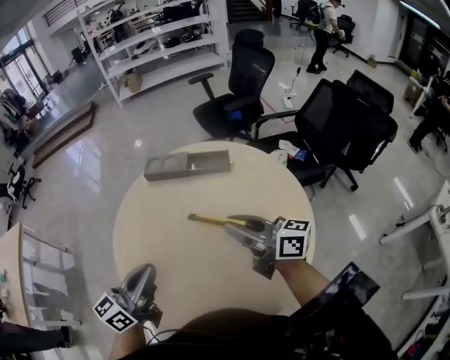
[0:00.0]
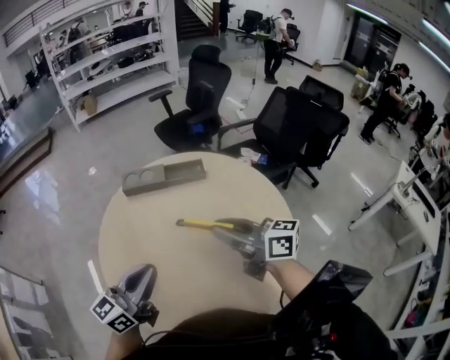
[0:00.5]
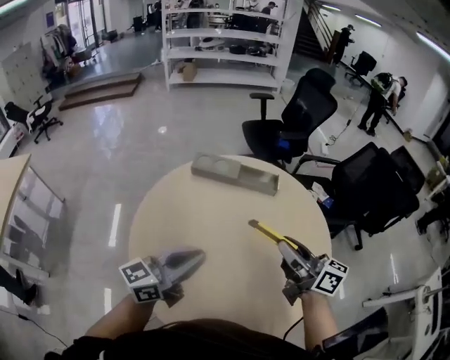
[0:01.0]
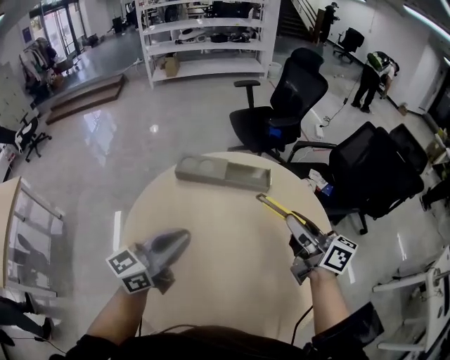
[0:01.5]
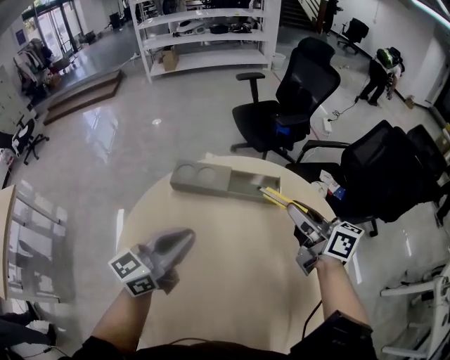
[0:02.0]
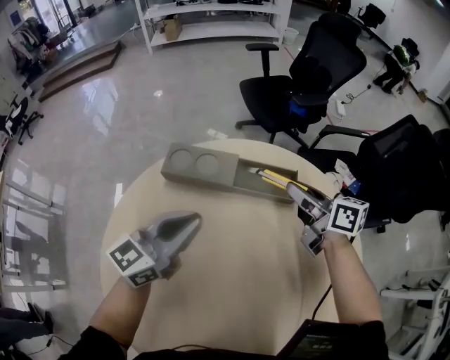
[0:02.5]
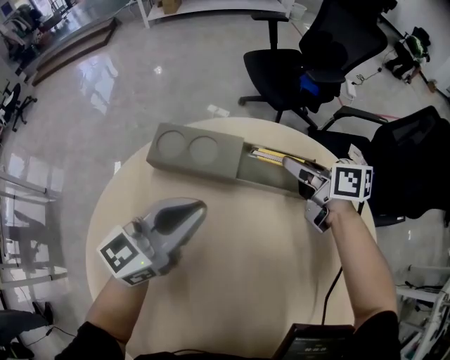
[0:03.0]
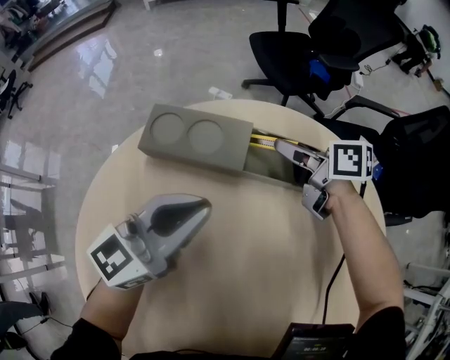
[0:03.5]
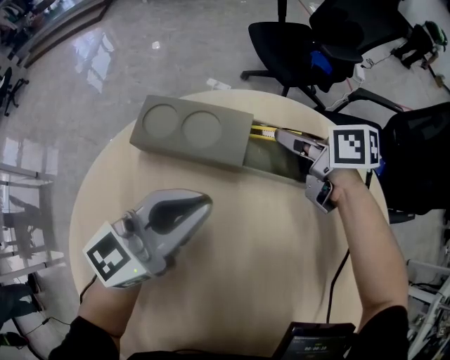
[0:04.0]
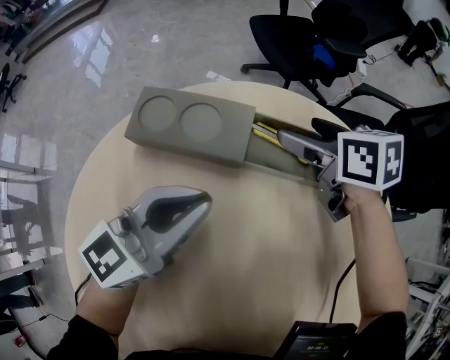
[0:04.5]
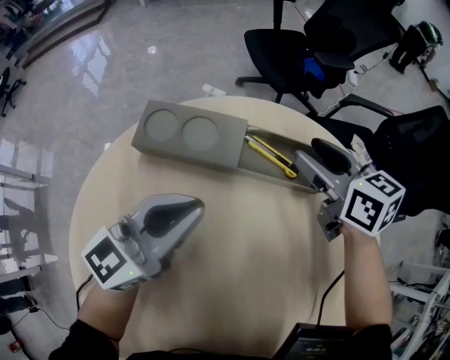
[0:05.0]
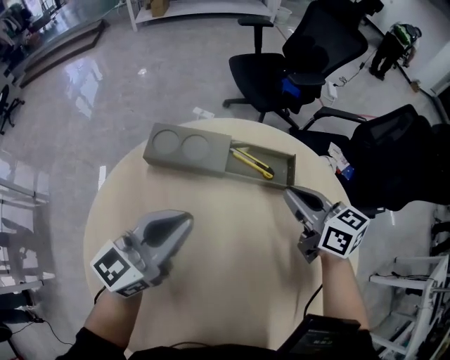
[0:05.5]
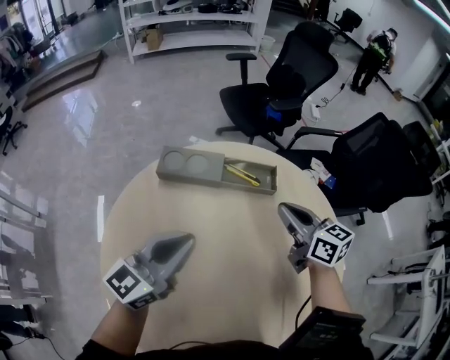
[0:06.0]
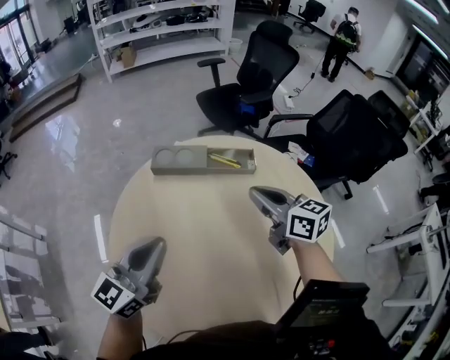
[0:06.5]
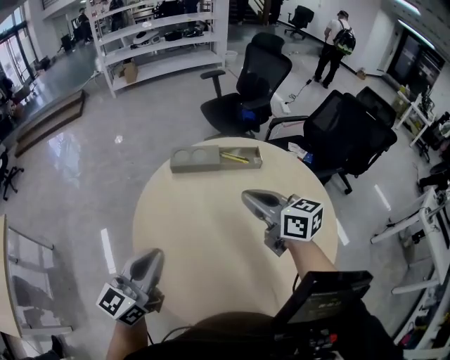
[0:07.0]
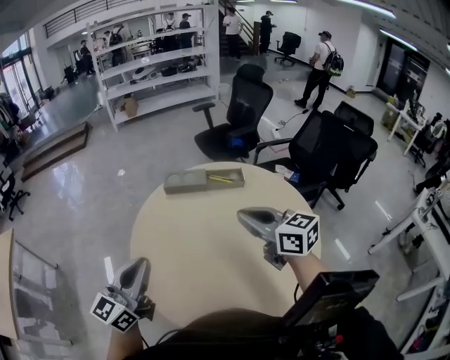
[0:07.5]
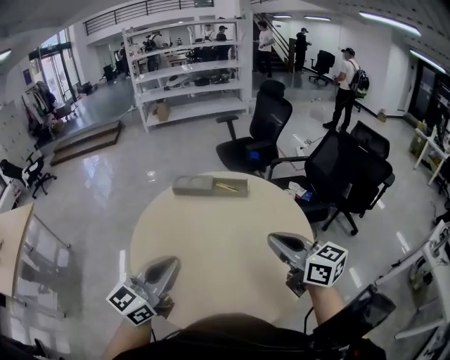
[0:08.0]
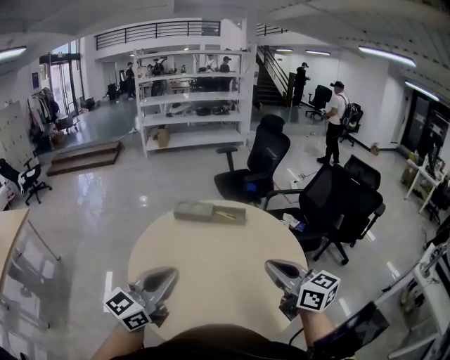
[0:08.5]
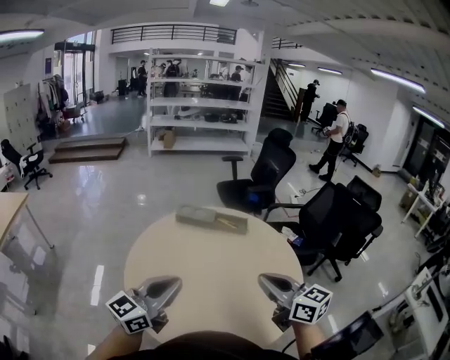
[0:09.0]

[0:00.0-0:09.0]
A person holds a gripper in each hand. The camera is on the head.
0:00.0 to 0:02.0: Both grippers move forward, approximately 25 cm.
0:02.0 to 0:04.5: Both grippers travel together downward and forward, about 30 cm. The right gripper tips its fingers downward by about 40 degrees, and opens up.
0:04.5 to 0:07.0: The two grippers travel together, backward, approximately 40 cm. The grippers both shift upward by some 30 cm. The right gripper changes its angle by about 30 degrees, and closes up.
0:07.0 to 0:09.0: The two grippers go approximately 25 cm backward and to the right.

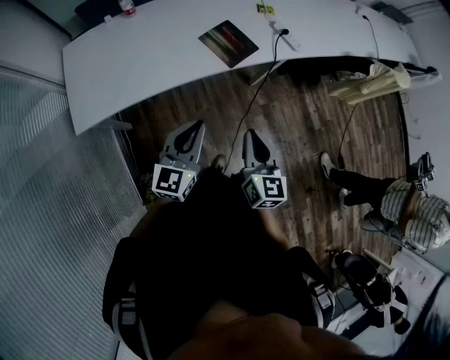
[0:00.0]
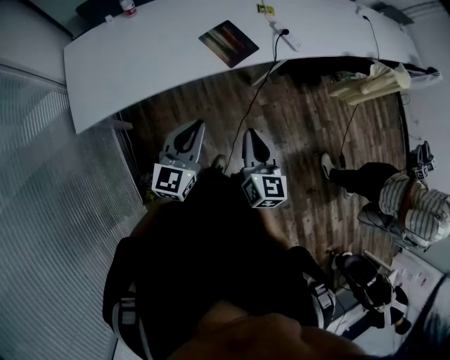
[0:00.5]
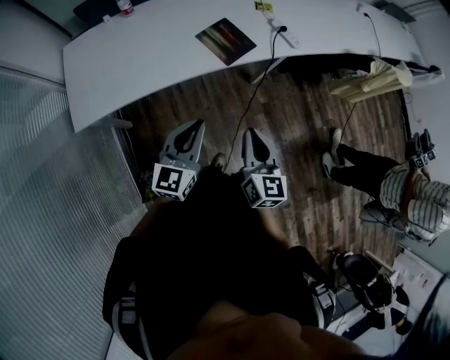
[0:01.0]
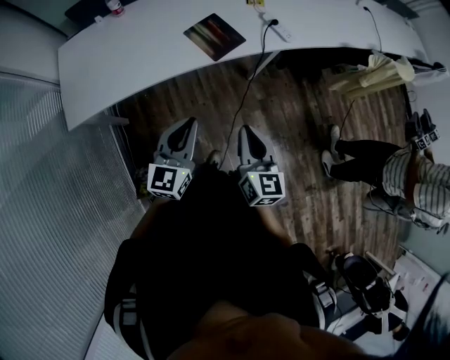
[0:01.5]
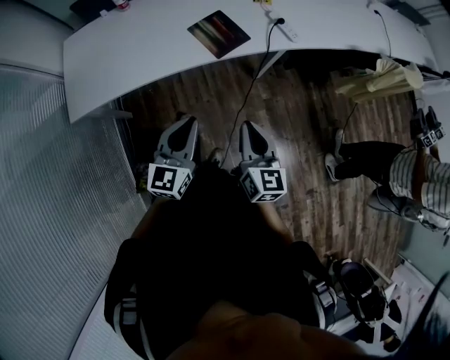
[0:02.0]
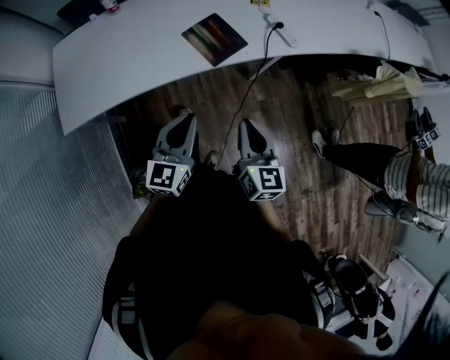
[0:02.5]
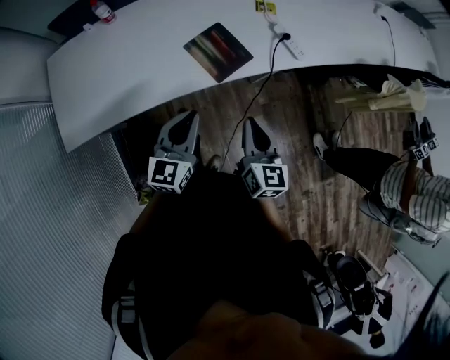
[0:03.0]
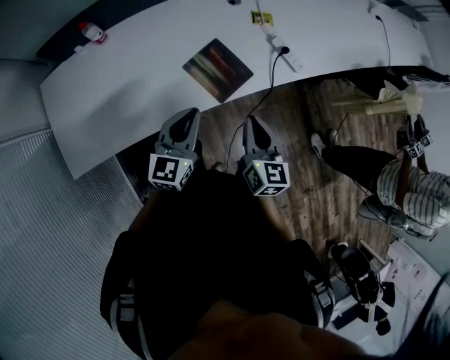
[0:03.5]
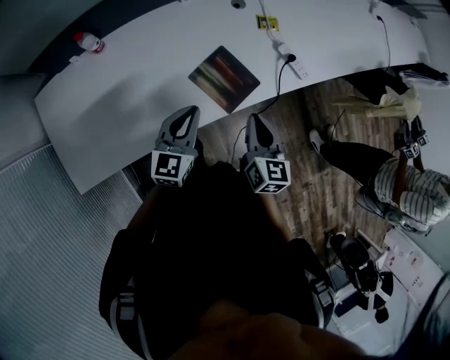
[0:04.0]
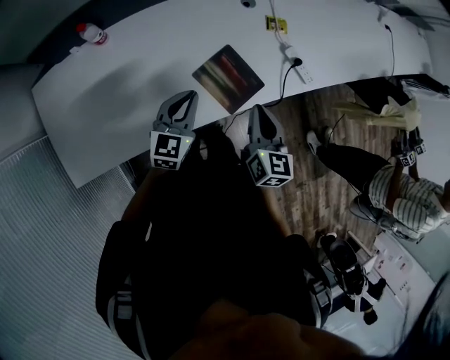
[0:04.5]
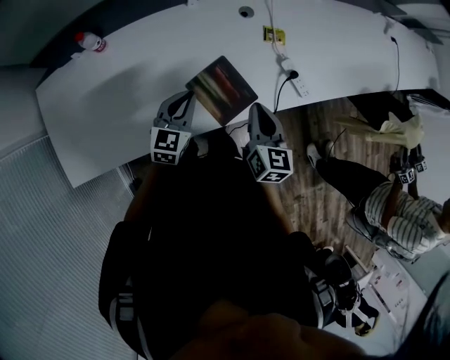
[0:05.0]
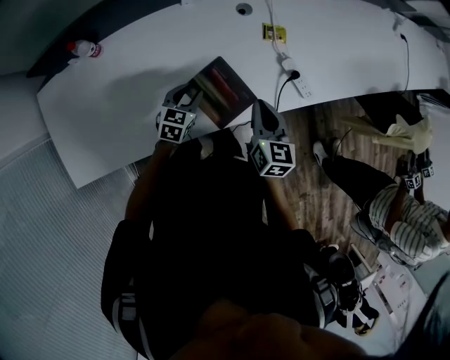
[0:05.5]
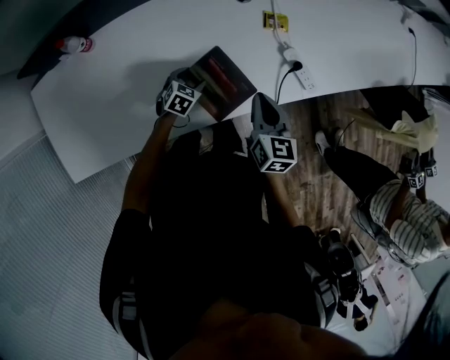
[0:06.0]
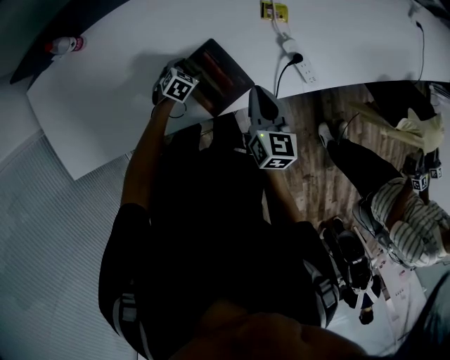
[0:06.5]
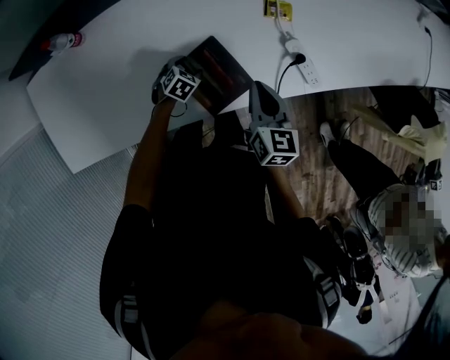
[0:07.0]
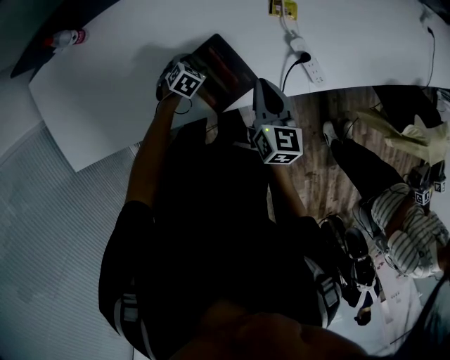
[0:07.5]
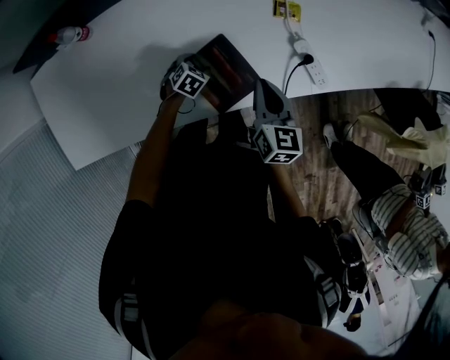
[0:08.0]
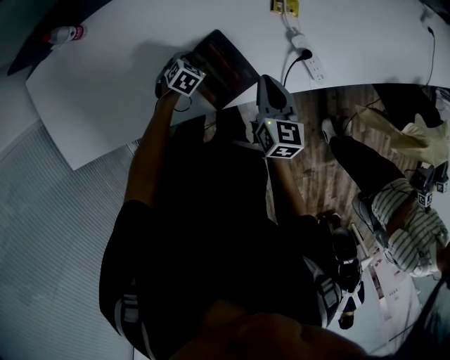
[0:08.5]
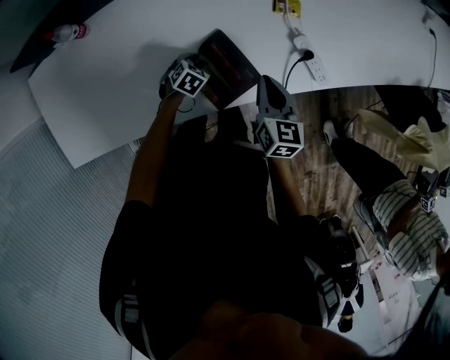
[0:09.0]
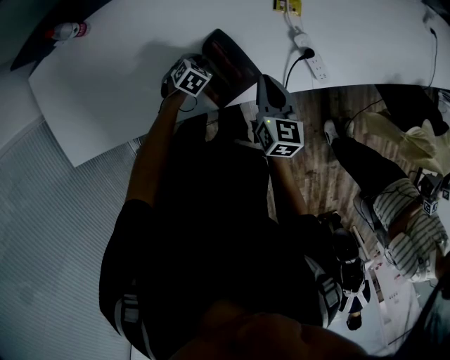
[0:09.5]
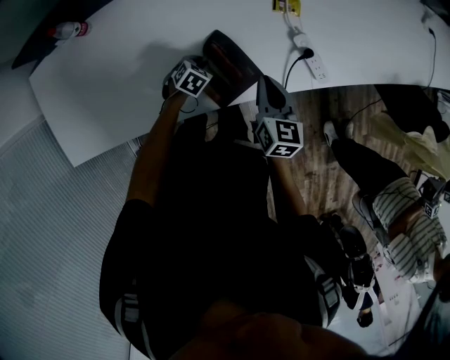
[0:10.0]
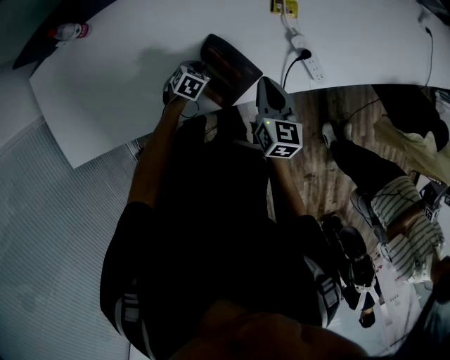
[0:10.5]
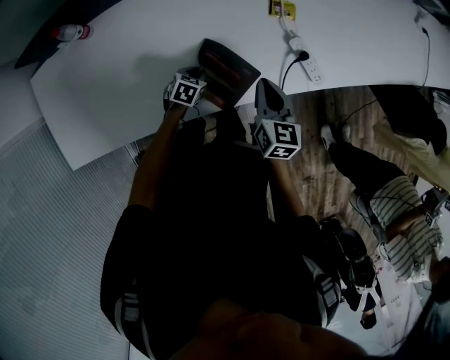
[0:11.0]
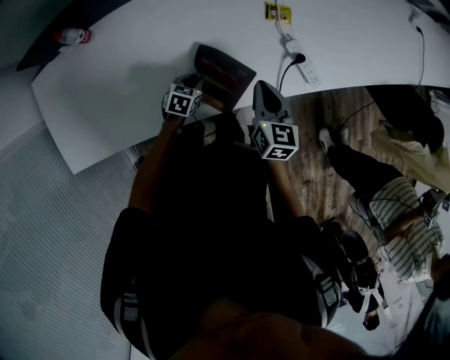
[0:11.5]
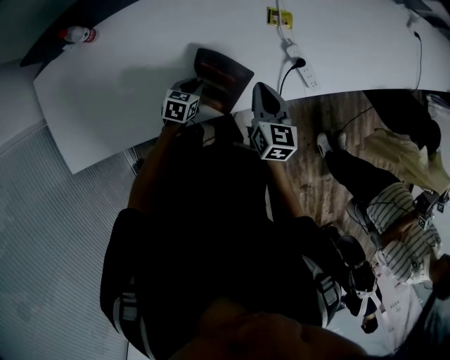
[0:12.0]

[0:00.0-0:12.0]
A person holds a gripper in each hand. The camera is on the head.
0:00.0 to 0:02.0: The two grippers go roughly 10 cm to the right.
0:02.0 to 0:04.0: The grippers both shift forward by some 35 cm.
0:04.0 to 0:06.0: The left gripper is displaced downward and forward by approximately 30 cm, points its fingers about 40 degrees further downward, and opens up; the right gripper shifts about 15 cm forward, downward and to the right.
0:06.0 to 0:08.0: The left gripper heads downward, covering roughly 5 cm.
0:08.0 to 0:10.0: The left gripper closes up.
0:10.0 to 0:12.0: The left gripper shifts some 5 cm upward, and swivels approximately 20 degrees.

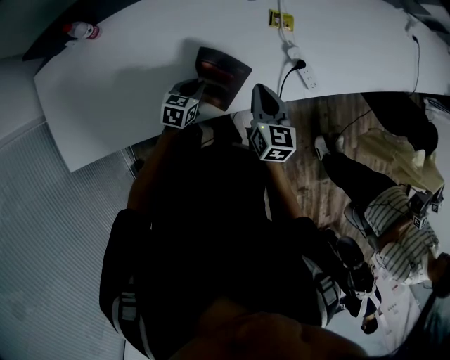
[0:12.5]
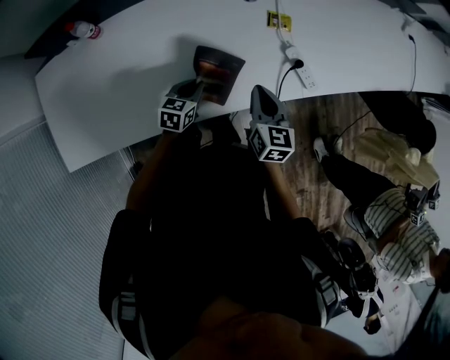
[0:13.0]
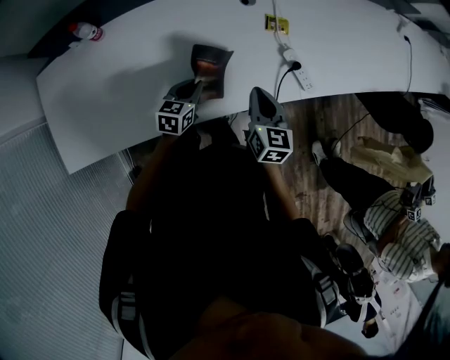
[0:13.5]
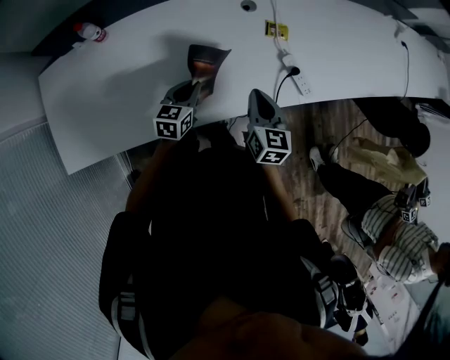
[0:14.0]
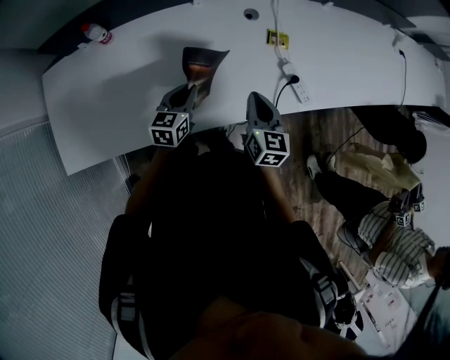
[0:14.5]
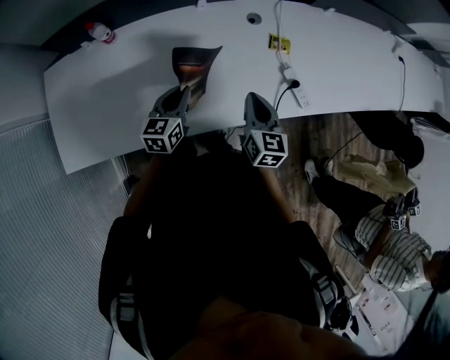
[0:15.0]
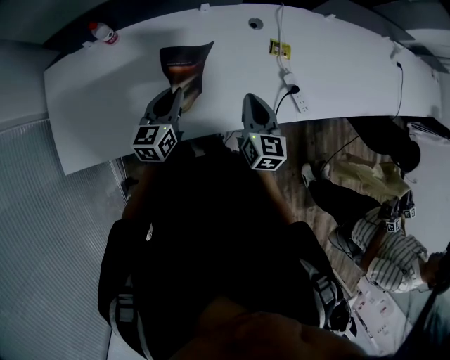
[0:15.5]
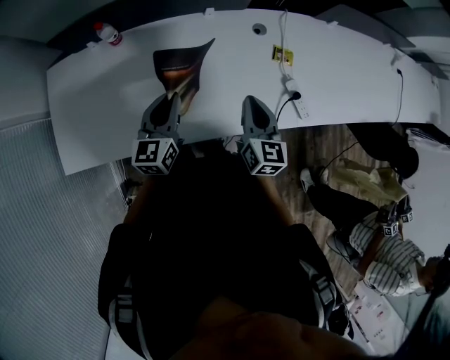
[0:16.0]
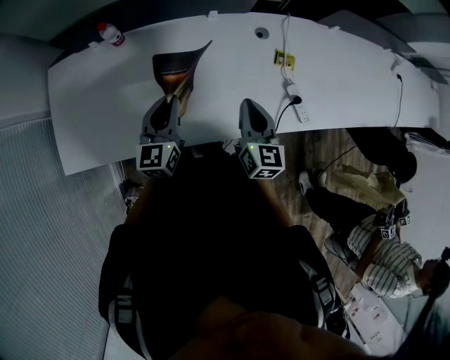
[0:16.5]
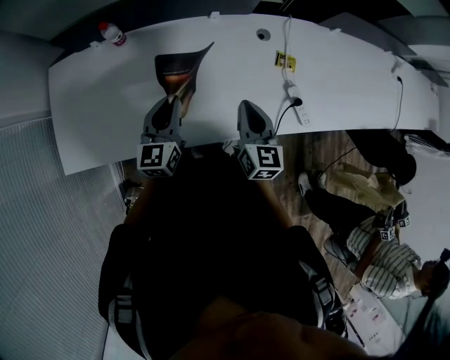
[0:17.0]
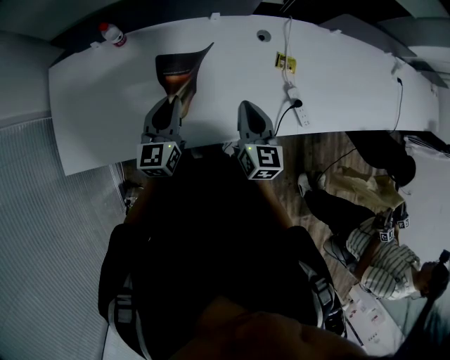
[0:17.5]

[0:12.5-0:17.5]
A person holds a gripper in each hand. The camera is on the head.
0:12.5 to 0:15.0: The right gripper moves some 5 cm, while the left gripper shifts roughly 15 cm upward and to the left, and changes its angle by some 30 degrees.
0:15.0 to 0:17.5: The left gripper shifts approximately 10 cm upward and to the left; the right gripper travels to the left by some 5 cm.

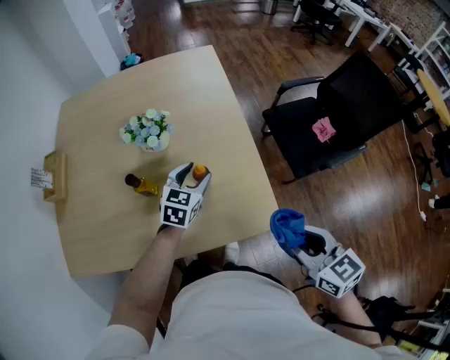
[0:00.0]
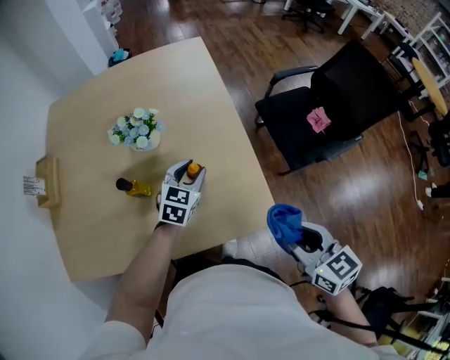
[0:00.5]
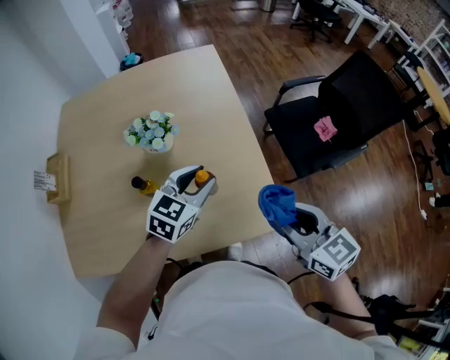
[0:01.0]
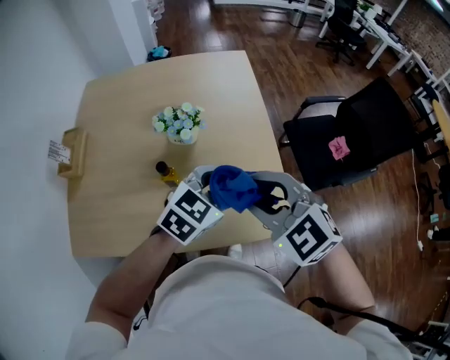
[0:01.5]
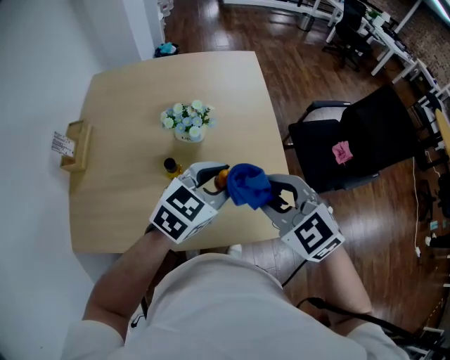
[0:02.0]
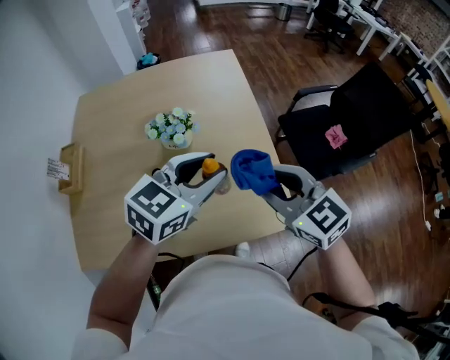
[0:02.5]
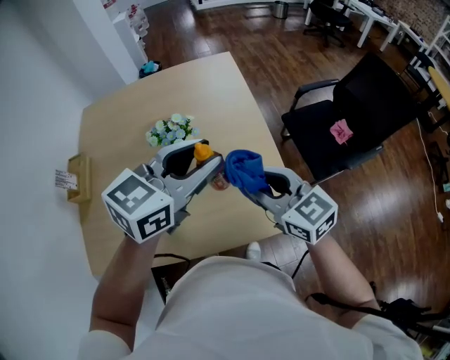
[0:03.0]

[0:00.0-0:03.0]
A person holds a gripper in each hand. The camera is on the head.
0:00.0 to 0:01.5: The right gripper travels to the left, forward and upward by roughly 25 cm, and rotates around the line of its fingers by approximately 50 degrees, counterclockwise from behind. Meanwhile the left gripper moves upward and backward, approximately 15 cm, and closes its fingers.
0:01.5 to 0:03.0: The left gripper shifts roughly 15 cm upward, while the right gripper moves approximately 5 cm, and turns by some 40 degrees.
